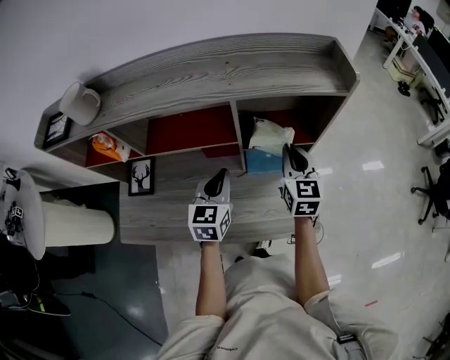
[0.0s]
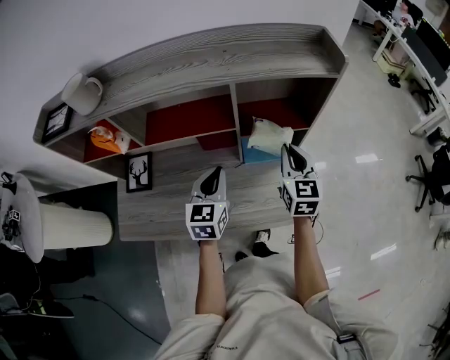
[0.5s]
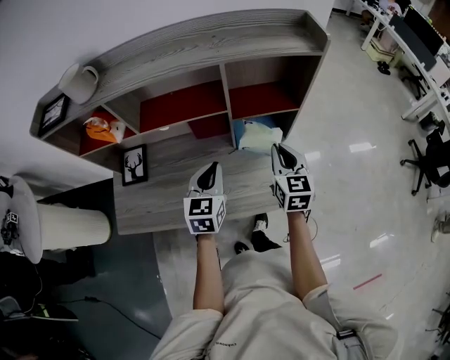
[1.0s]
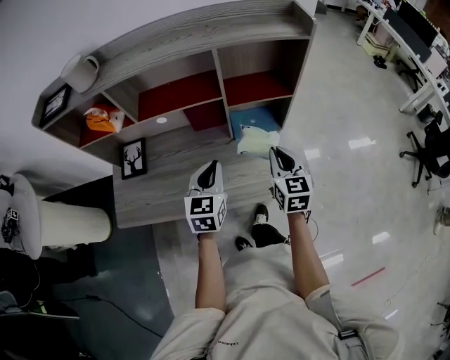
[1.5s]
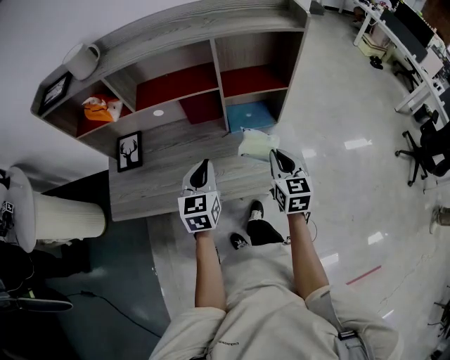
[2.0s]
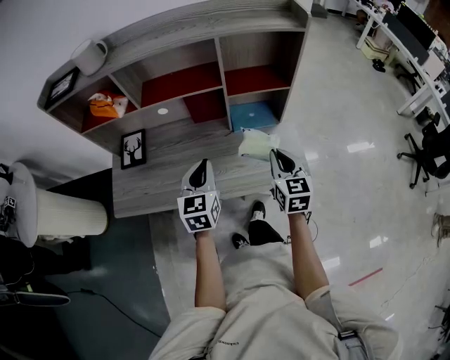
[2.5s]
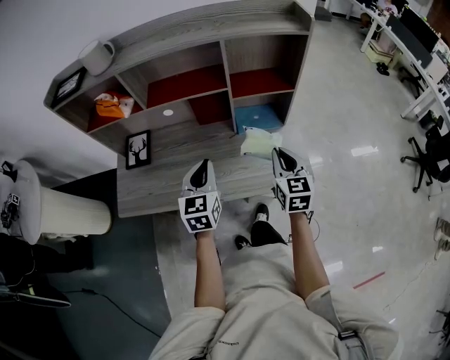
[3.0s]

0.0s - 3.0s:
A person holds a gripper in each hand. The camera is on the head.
0.0s - 1.5s: The two grippers go about 15 cm backward.
1.5s - 3.0s: The left gripper moves approximately 5 cm.

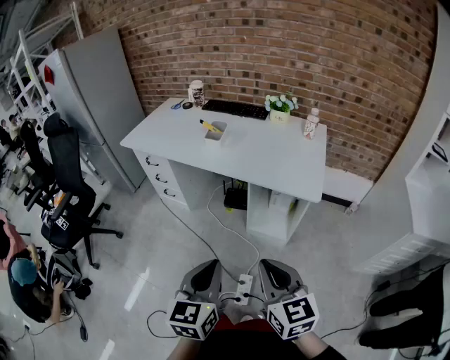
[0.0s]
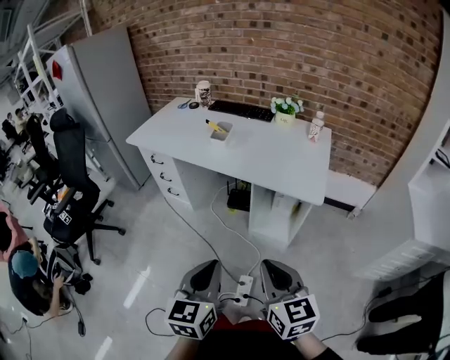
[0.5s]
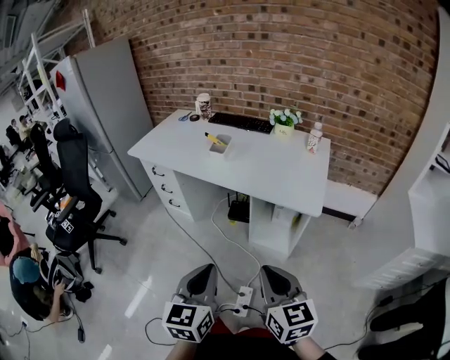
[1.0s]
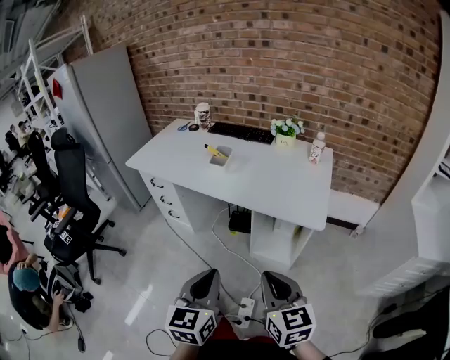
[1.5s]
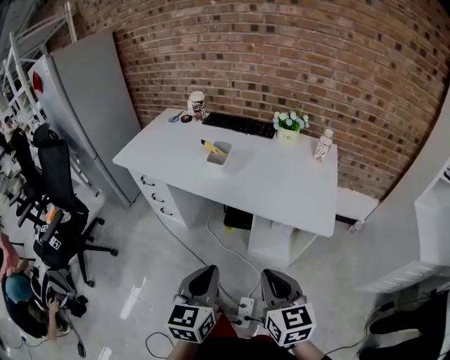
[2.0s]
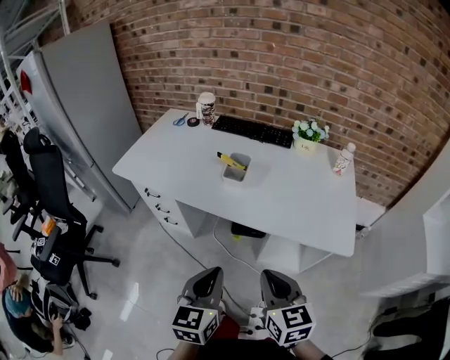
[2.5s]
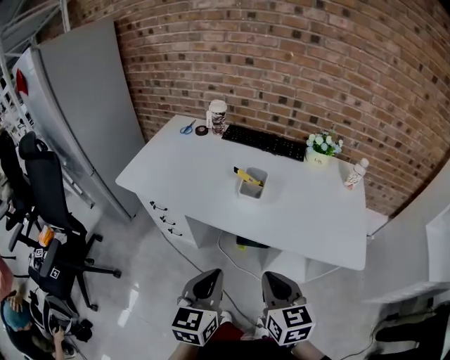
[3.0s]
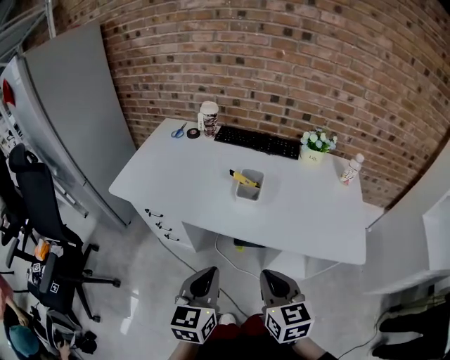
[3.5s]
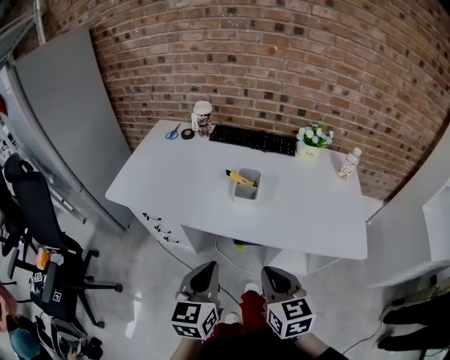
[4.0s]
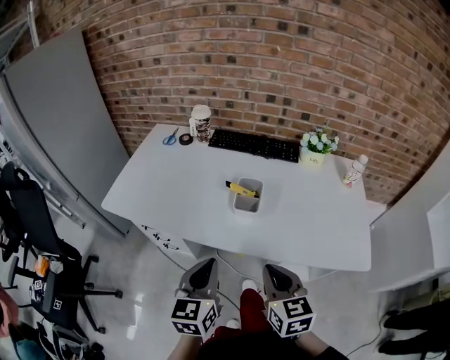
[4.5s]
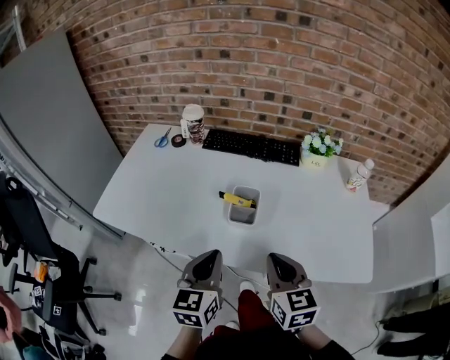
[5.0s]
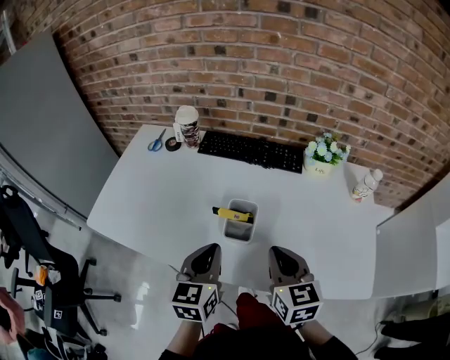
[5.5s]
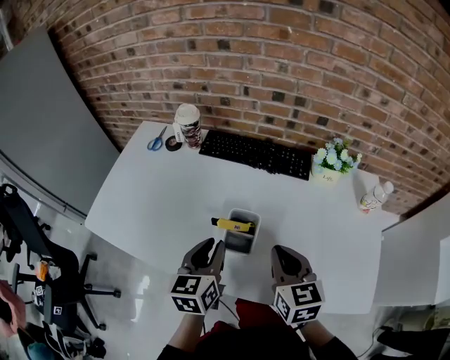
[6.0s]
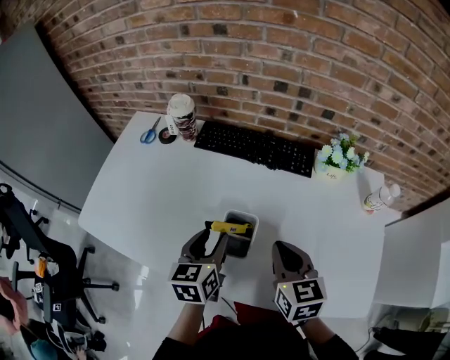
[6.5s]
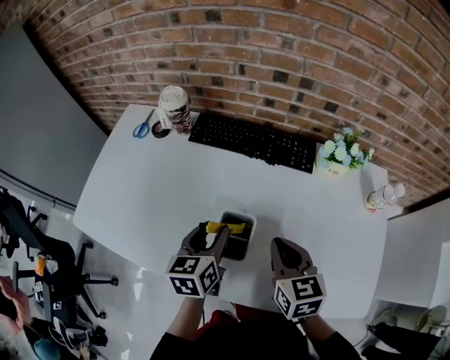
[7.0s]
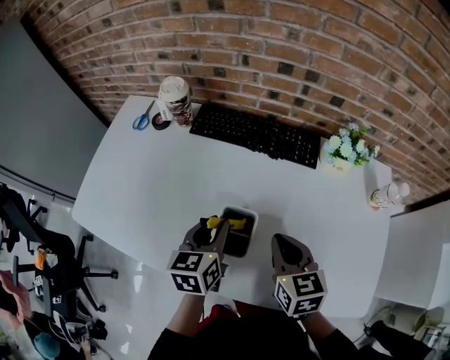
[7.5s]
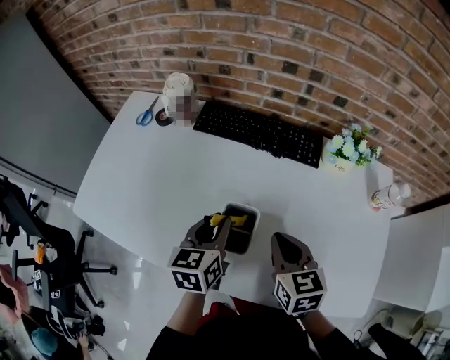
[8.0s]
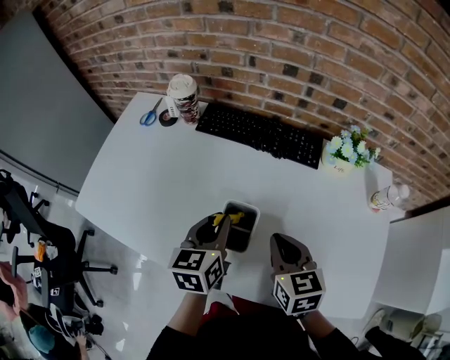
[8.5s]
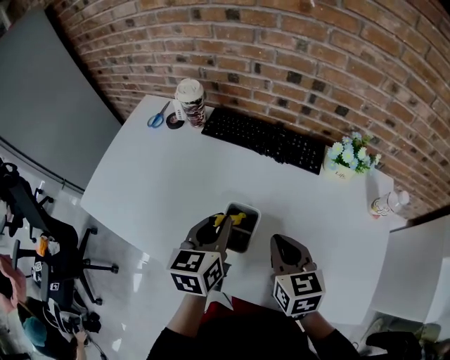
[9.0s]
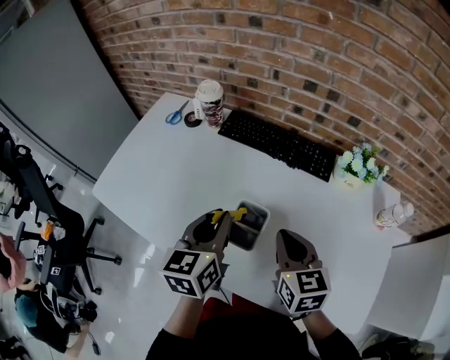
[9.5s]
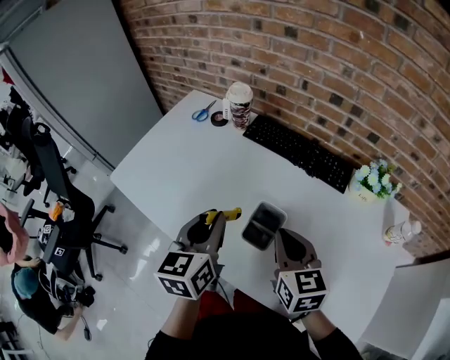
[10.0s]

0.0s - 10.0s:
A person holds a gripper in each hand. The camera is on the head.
0.0s - 2.0s: The two grippers go about 15 cm forward.
2.0s - 4.0s: The two grippers go about 25 cm forward and to the left.
4.0s - 6.0s: The two grippers go about 25 cm forward.
6.0s - 8.0s: The left gripper travels forward by roughly 5 cm, and opens and closes again, while the right gripper shifts by roughly 5 cm.
8.0s - 10.0s: The right gripper travels to the left and upward by roughly 10 cm. The left gripper is displaced upward and to the left by some 15 cm, and swivels some 20 degrees.

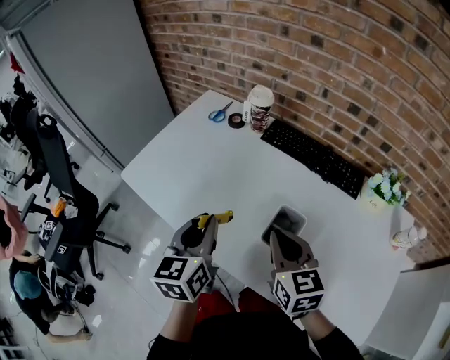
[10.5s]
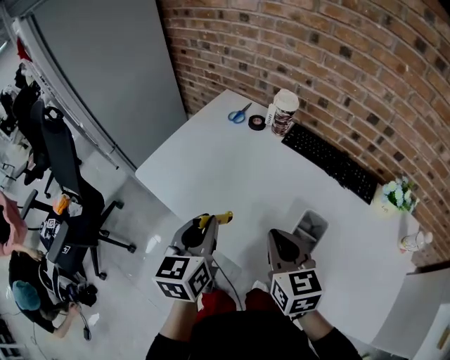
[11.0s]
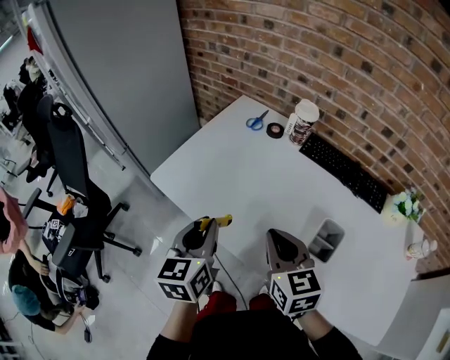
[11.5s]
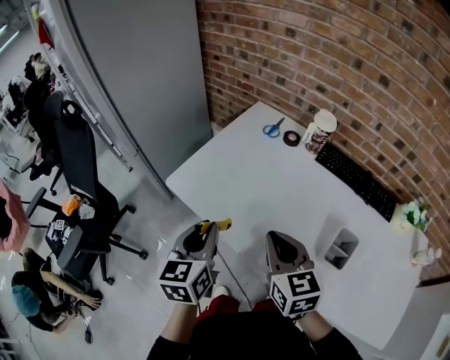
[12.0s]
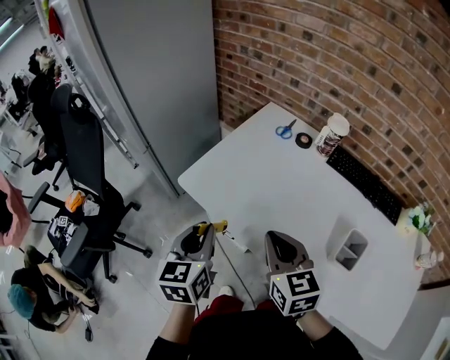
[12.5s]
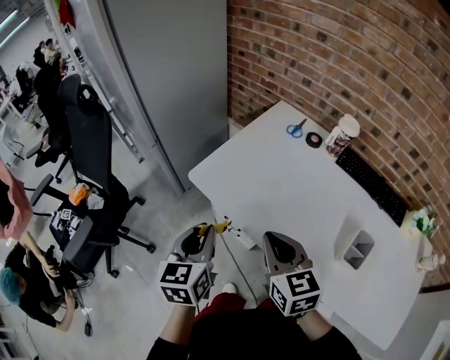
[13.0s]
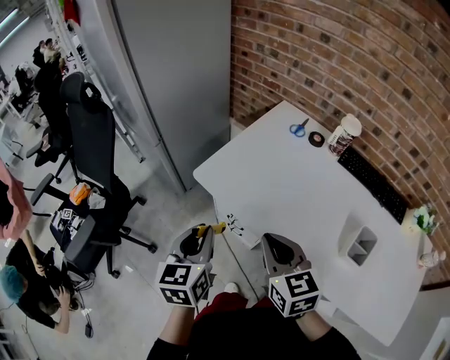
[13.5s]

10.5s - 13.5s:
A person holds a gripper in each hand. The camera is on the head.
10.5s - 12.0s: Both grippers move to the left, some 20 cm.
12.0s - 13.5s: The two grippers go some 10 cm to the left.

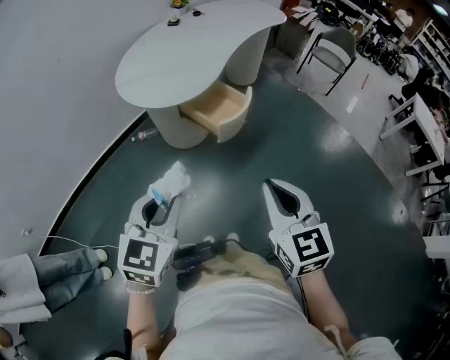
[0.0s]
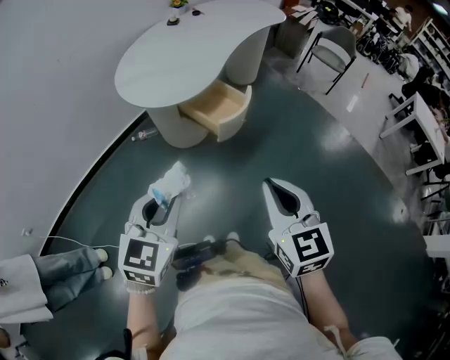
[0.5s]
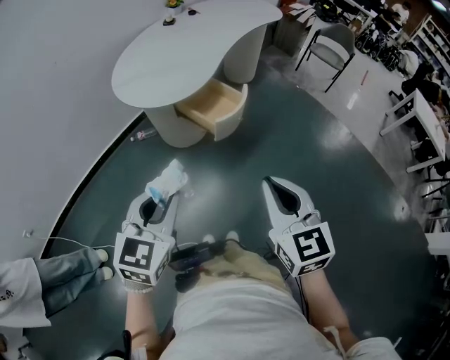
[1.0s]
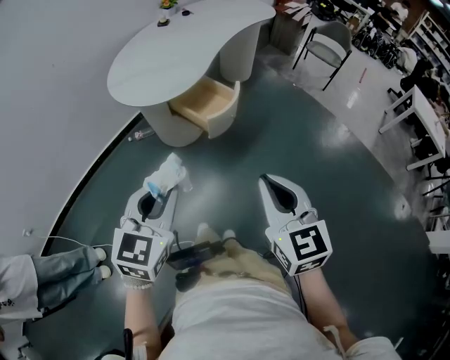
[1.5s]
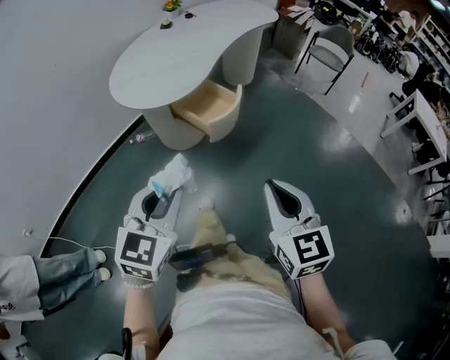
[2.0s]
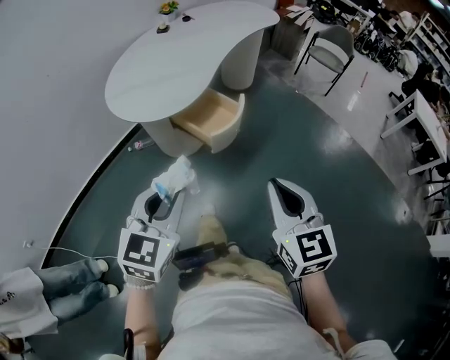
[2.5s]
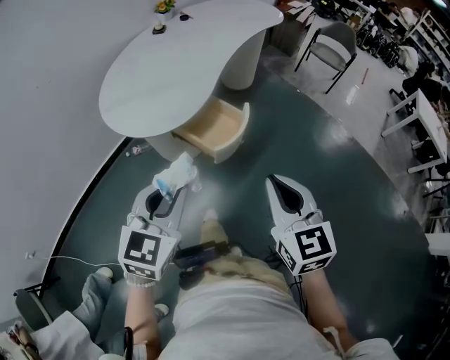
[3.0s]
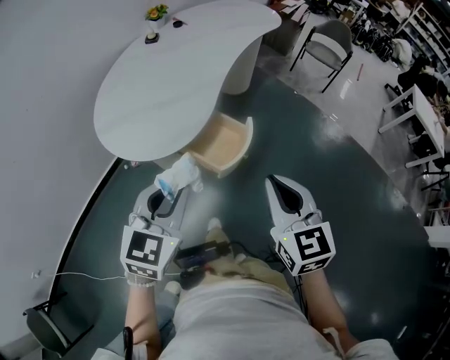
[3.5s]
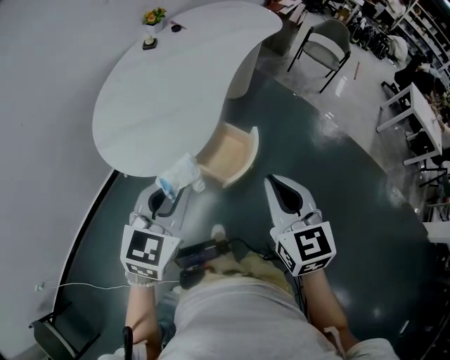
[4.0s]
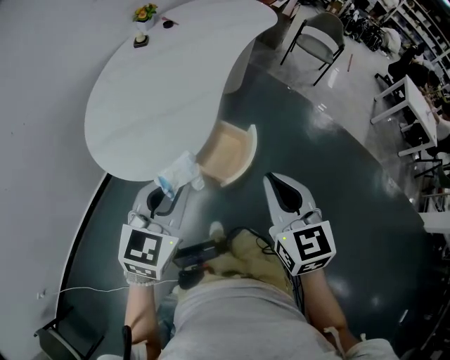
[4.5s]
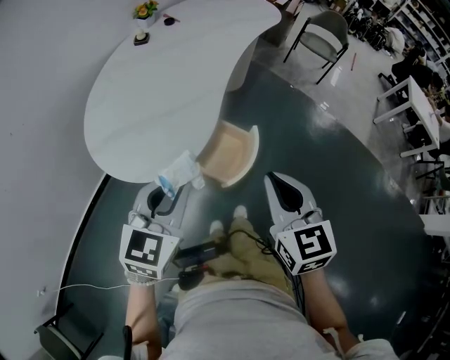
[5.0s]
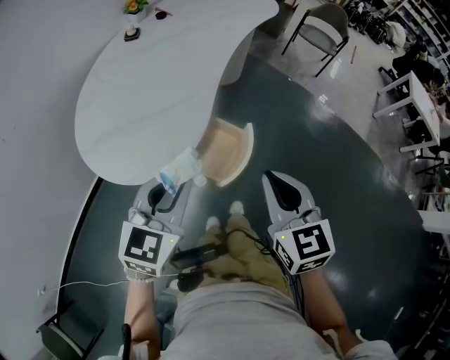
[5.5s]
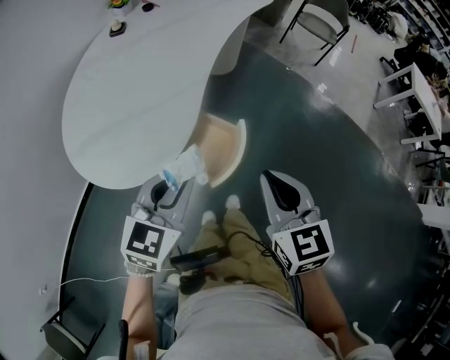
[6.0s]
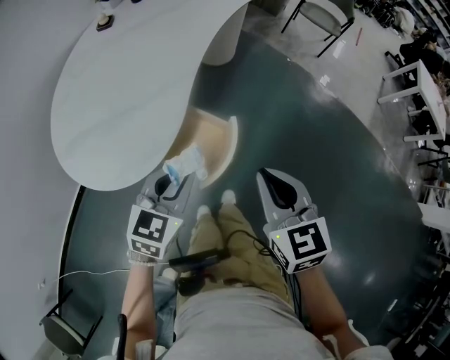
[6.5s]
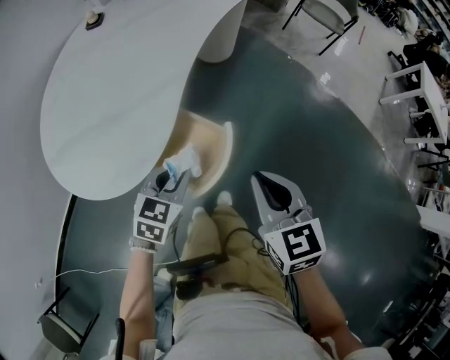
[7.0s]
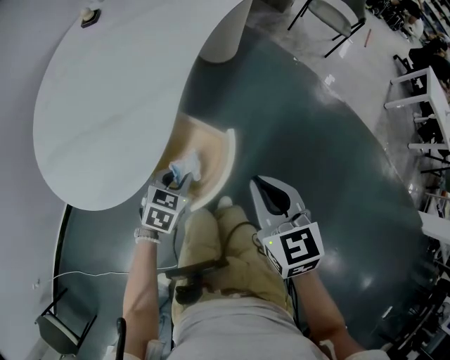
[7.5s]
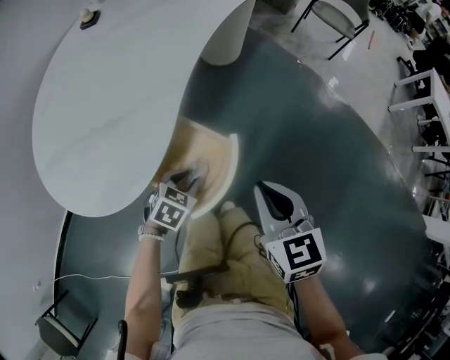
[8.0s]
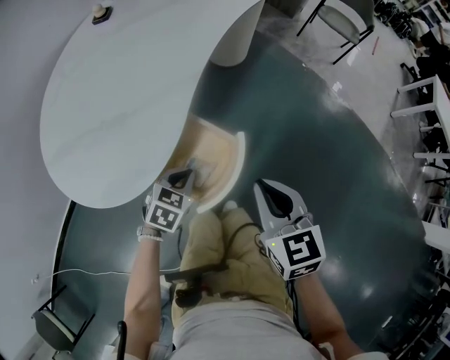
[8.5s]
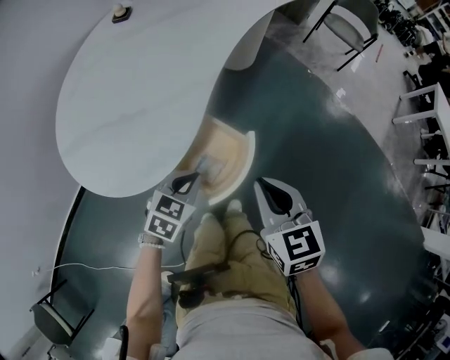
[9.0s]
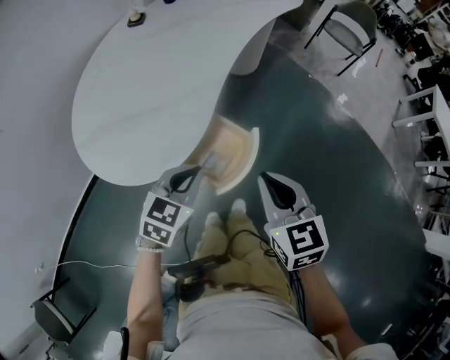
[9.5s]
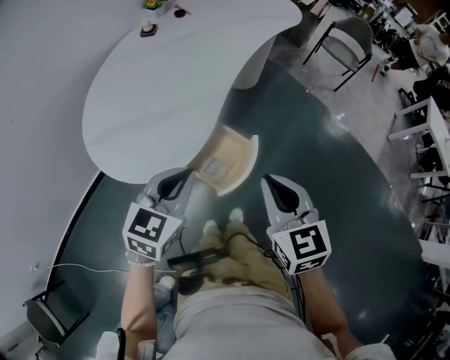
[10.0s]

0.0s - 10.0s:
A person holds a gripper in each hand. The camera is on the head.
0.0s - 2.0s: The grippers both shift to the right by some 5 cm.
2.0s - 4.0s: The grippers both shift forward by some 30 cm.
4.0s - 6.0s: The right gripper goes approximately 10 cm forward and downward. Meanwhile the left gripper goes roughly 10 cm forward, downward and to the right.
6.0s - 8.0s: The left gripper heads downward, covering approximately 30 cm, and points its fingers approximately 30 degrees further downward. Meanwhile the right gripper heads downward and forward, covering approximately 15 cm.
8.0s - 10.0s: The left gripper goes approximately 30 cm upward, turns by some 30 degrees, and closes up. The right gripper is displaced upward by about 15 cm.
